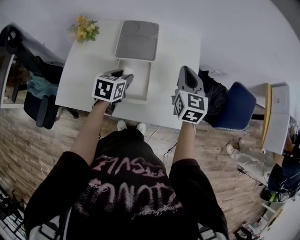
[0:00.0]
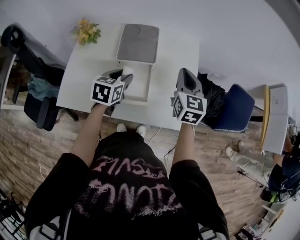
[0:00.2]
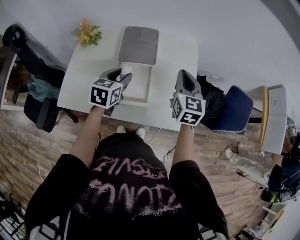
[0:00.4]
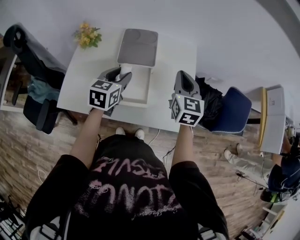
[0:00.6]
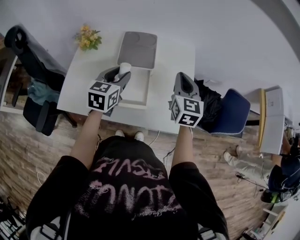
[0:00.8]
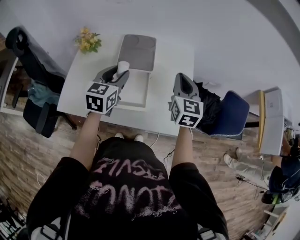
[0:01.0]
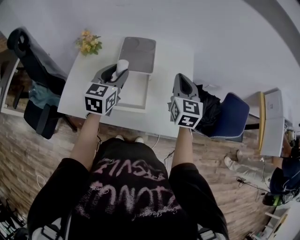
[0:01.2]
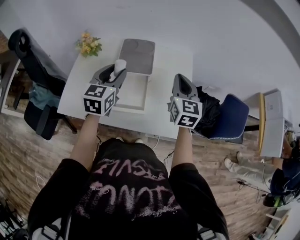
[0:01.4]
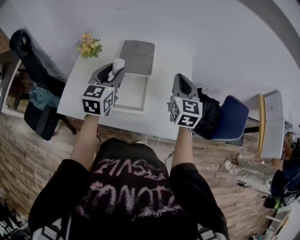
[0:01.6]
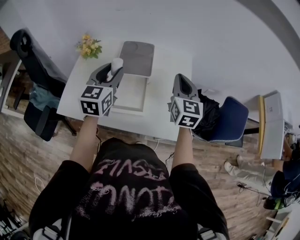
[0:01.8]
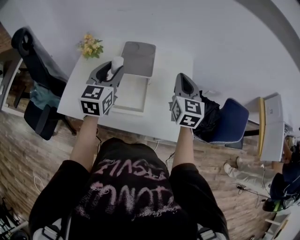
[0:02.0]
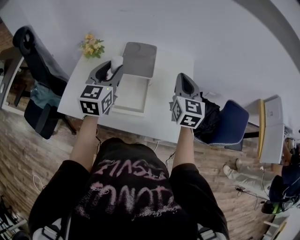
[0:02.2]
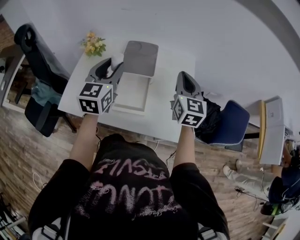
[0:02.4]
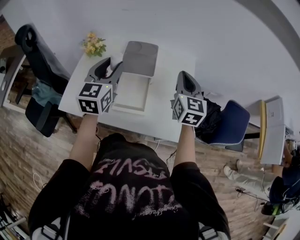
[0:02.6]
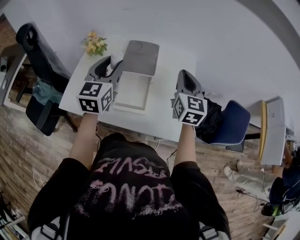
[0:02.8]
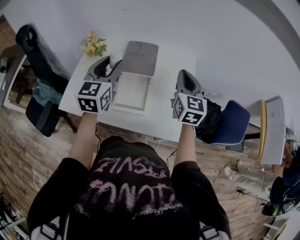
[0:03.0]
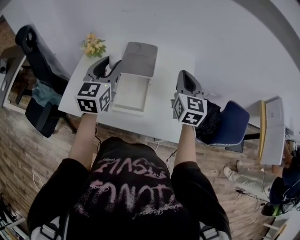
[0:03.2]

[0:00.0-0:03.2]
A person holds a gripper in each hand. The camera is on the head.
0:00.0 to 0:01.6: The left gripper shifts roughly 15 cm upward, and tilts its fingers approximately 30 degrees upward.
0:01.6 to 0:03.2: The left gripper moves about 5 cm.

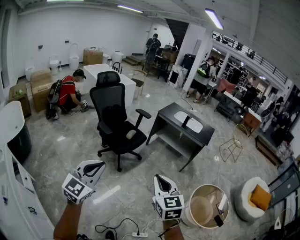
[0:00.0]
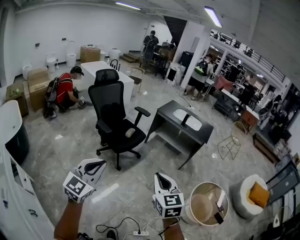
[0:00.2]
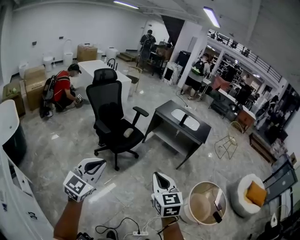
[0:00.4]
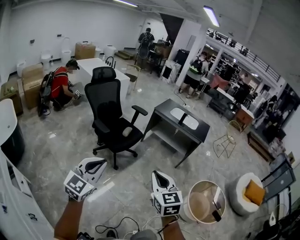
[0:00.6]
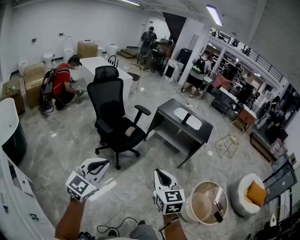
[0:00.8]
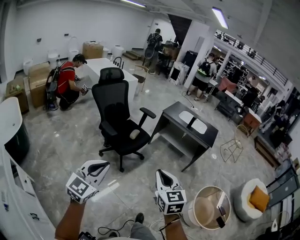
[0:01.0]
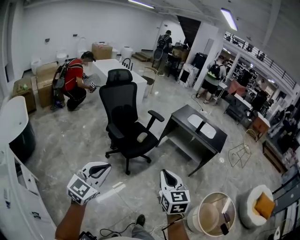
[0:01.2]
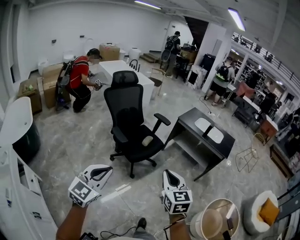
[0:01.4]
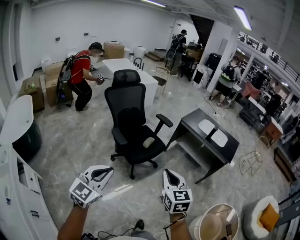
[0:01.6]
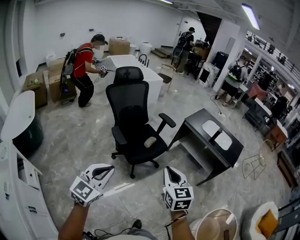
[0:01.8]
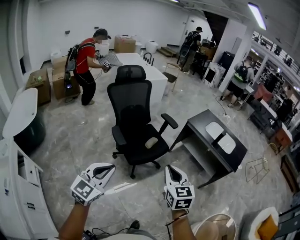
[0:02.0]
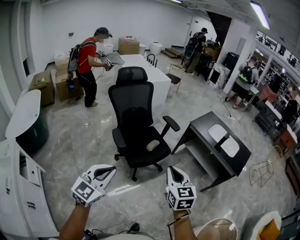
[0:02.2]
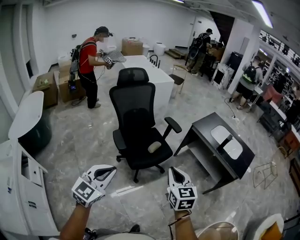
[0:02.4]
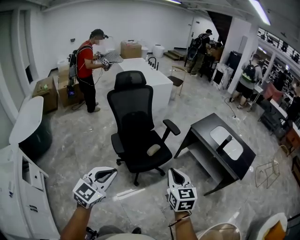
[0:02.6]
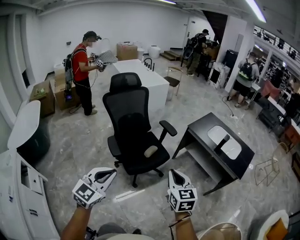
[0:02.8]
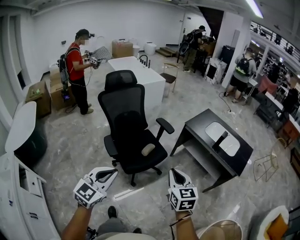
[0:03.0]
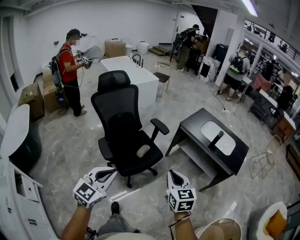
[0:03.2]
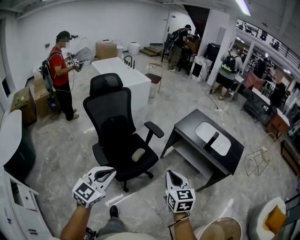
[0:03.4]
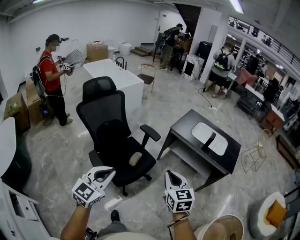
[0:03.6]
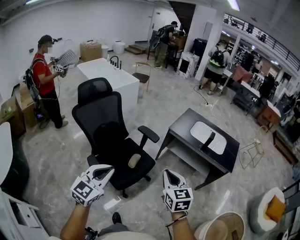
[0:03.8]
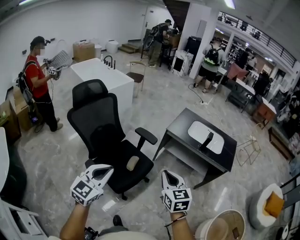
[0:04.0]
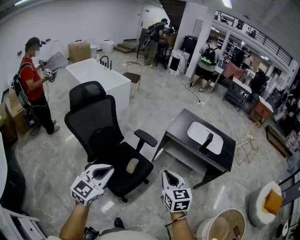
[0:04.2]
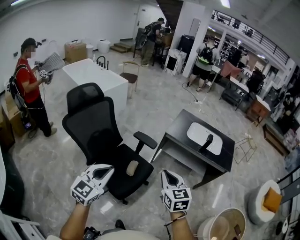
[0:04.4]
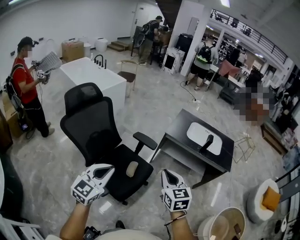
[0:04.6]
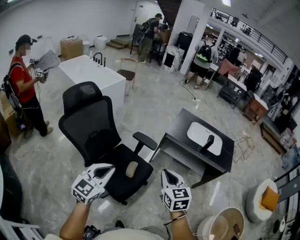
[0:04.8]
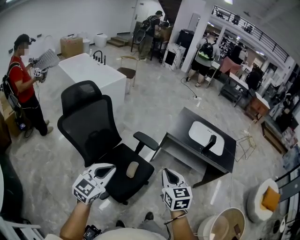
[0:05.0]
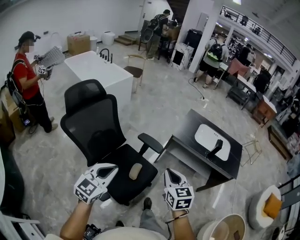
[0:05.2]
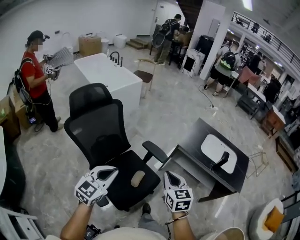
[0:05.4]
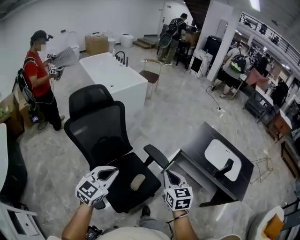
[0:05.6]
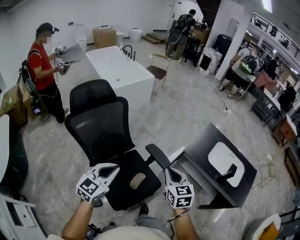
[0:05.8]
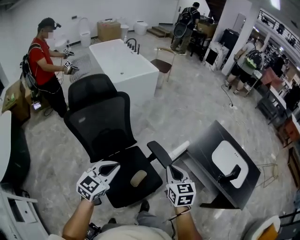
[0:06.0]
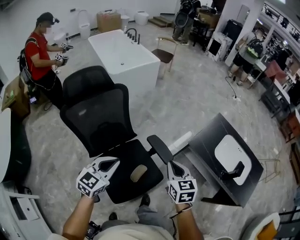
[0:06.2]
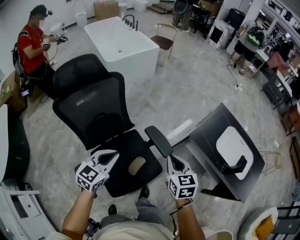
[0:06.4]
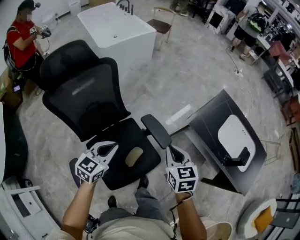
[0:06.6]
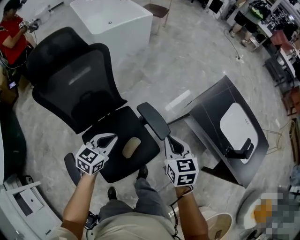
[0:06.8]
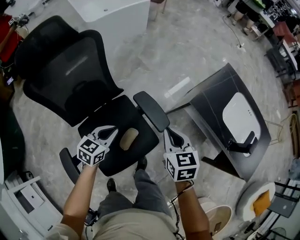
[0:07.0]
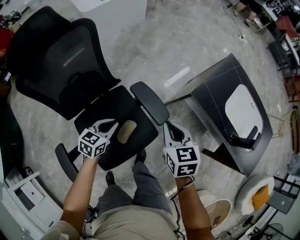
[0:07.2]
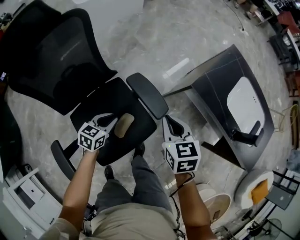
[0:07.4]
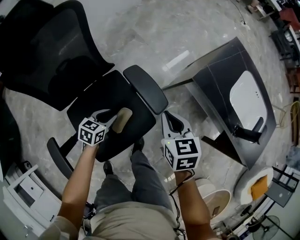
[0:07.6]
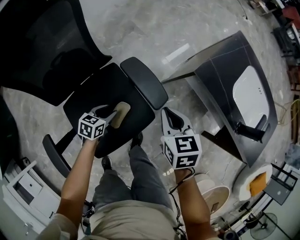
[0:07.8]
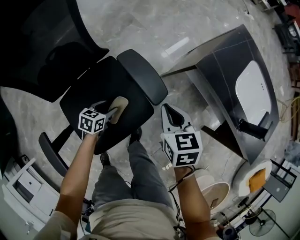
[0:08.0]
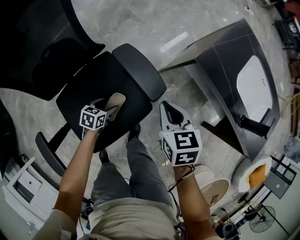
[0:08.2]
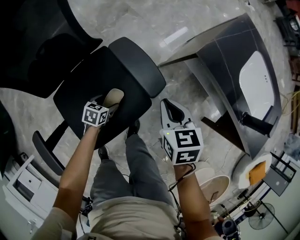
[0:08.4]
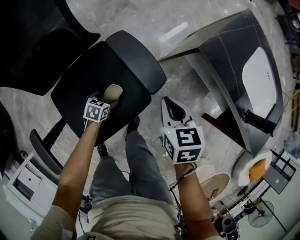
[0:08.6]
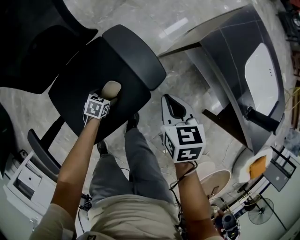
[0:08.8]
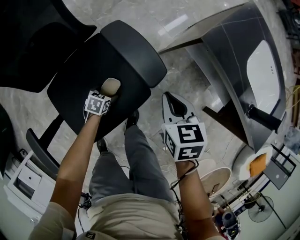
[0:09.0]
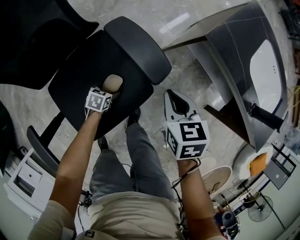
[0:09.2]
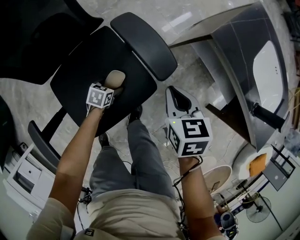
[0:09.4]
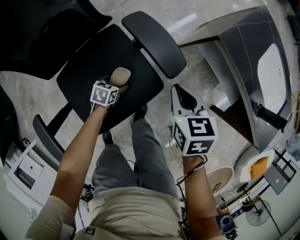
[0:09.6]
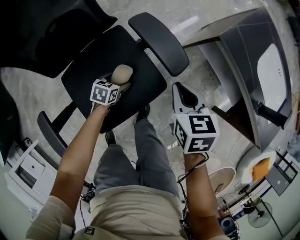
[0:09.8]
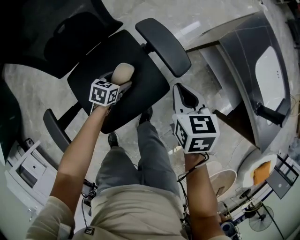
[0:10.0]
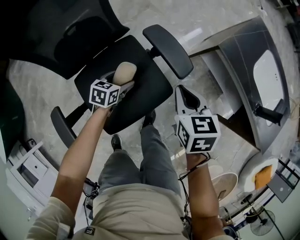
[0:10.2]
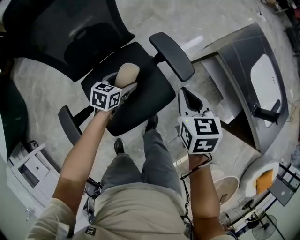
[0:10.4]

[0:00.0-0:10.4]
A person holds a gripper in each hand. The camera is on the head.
0:00.0 to 0:01.4: The two grippers go some 20 cm forward and to the left.
0:01.4 to 0:03.0: The grippers both shift forward and to the right by roughly 35 cm.
0:03.0 to 0:04.4: The grippers both shift forward and to the left by about 30 cm.
0:04.4 to 0:06.0: The left gripper goes some 25 cm forward and downward; the right gripper is displaced forward by about 30 cm.
0:06.0 to 0:07.4: The left gripper moves downward, some 40 cm, and turns by about 30 degrees. Meanwhile the right gripper travels downward and forward by roughly 25 cm.
0:07.4 to 0:09.0: The left gripper is displaced downward by roughly 30 cm, turns by roughly 30 degrees, and opens. The right gripper travels downward and to the right by about 15 cm.
0:09.0 to 0:10.4: The left gripper heads upward, covering roughly 25 cm, and swivels approximately 20 degrees. Meanwhile the right gripper travels upward and to the left by about 15 cm.

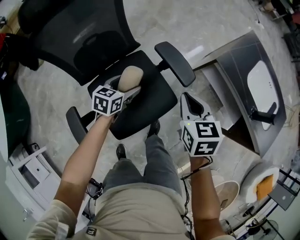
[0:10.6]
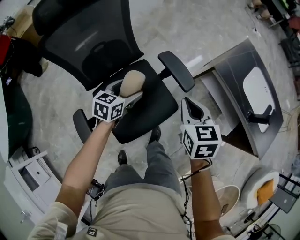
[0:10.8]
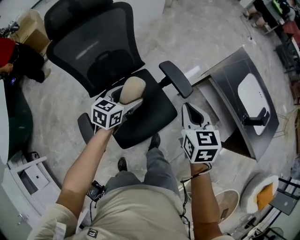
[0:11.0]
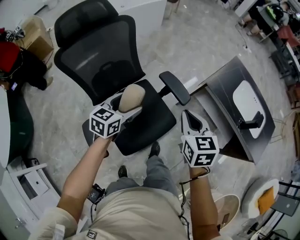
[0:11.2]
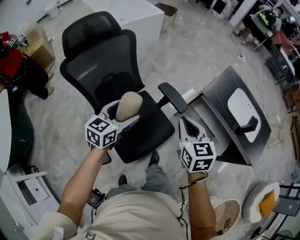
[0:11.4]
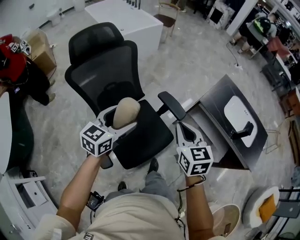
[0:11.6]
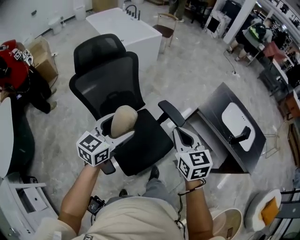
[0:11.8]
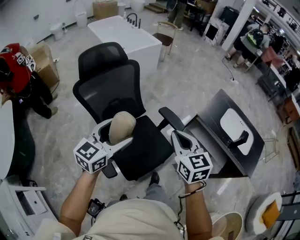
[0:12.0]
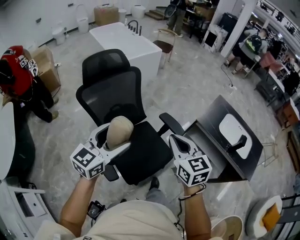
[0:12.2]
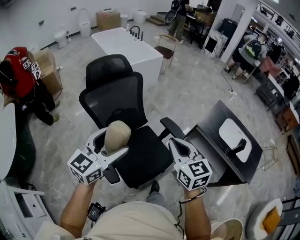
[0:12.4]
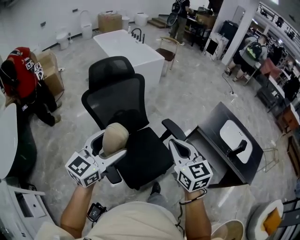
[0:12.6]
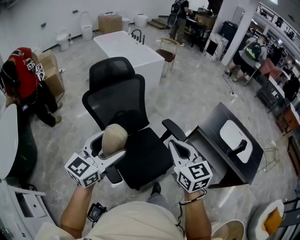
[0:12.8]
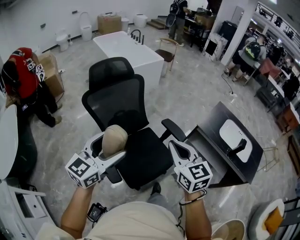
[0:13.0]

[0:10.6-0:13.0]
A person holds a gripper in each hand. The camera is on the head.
0:10.6 to 0:11.8: The left gripper moves upward and backward, approximately 40 cm, and swivels about 30 degrees; the right gripper goes approximately 25 cm upward and backward.
0:11.8 to 0:13.0: The right gripper goes about 10 cm upward, backward and to the left. Meanwhile the left gripper shifts roughly 15 cm backward, upward and to the left.

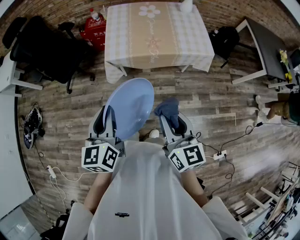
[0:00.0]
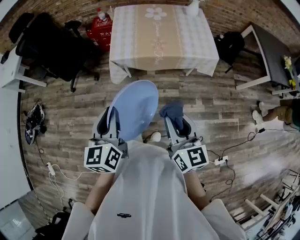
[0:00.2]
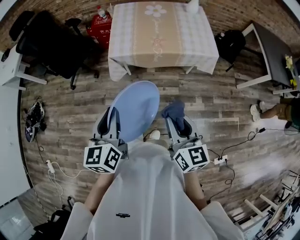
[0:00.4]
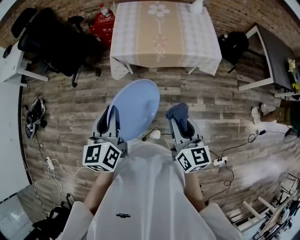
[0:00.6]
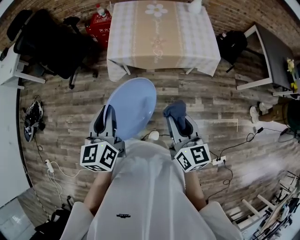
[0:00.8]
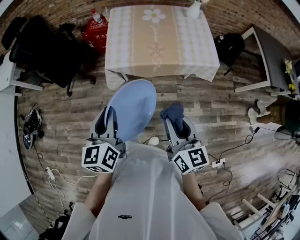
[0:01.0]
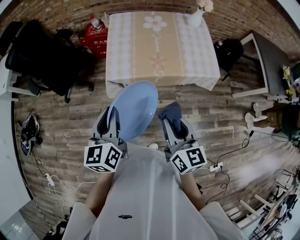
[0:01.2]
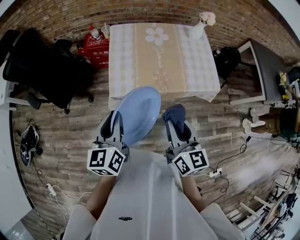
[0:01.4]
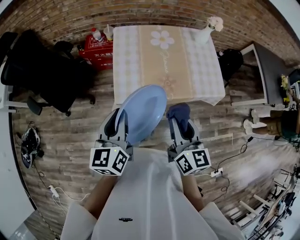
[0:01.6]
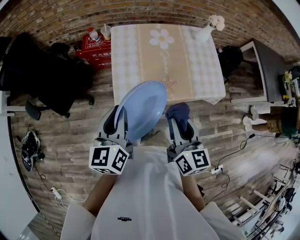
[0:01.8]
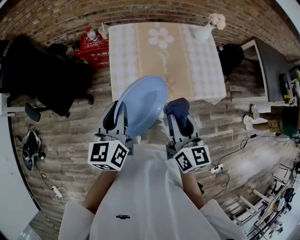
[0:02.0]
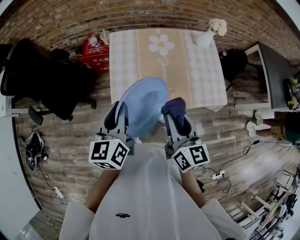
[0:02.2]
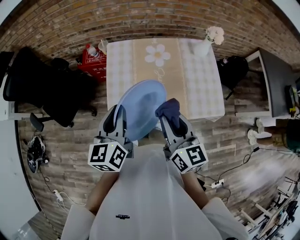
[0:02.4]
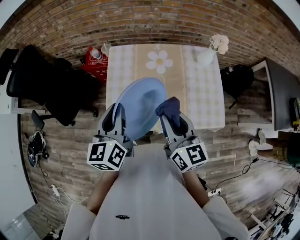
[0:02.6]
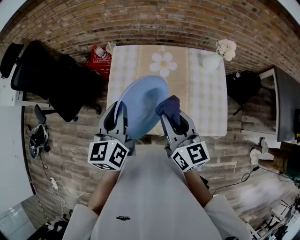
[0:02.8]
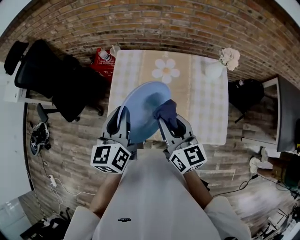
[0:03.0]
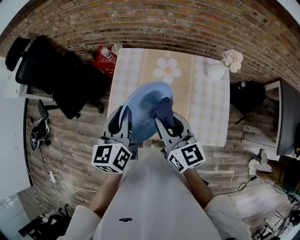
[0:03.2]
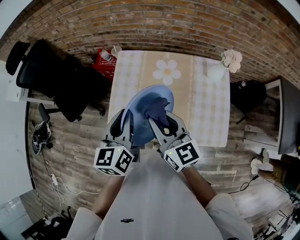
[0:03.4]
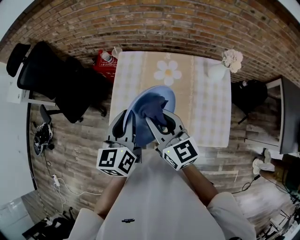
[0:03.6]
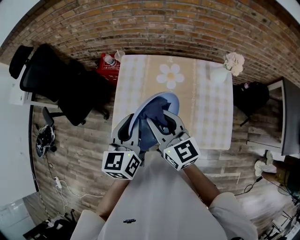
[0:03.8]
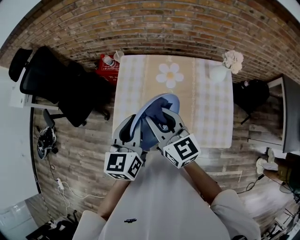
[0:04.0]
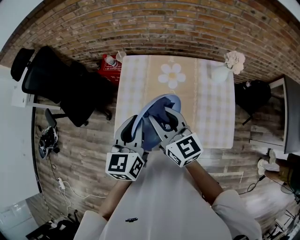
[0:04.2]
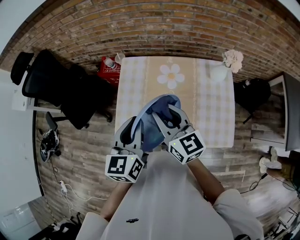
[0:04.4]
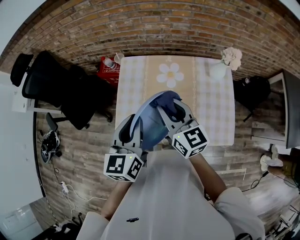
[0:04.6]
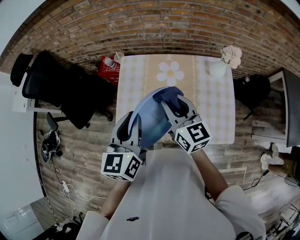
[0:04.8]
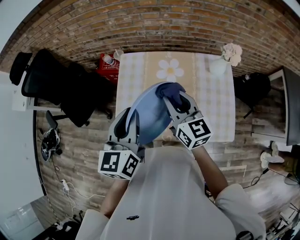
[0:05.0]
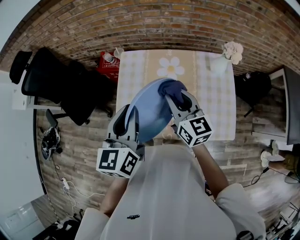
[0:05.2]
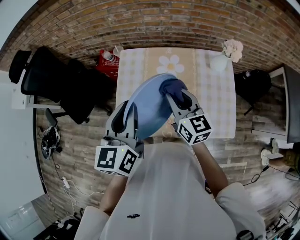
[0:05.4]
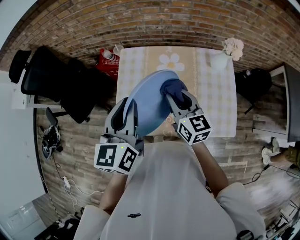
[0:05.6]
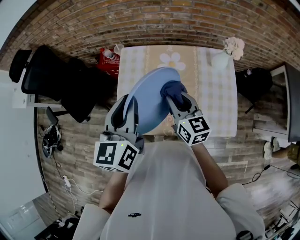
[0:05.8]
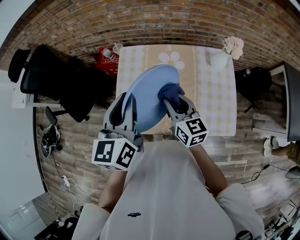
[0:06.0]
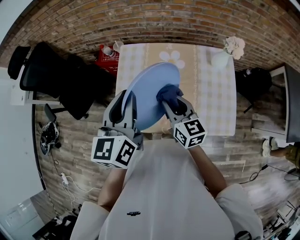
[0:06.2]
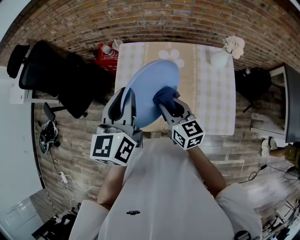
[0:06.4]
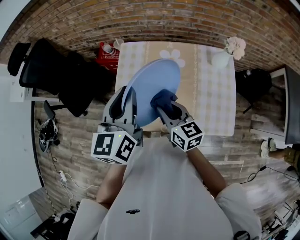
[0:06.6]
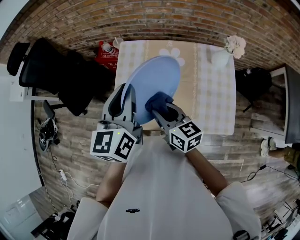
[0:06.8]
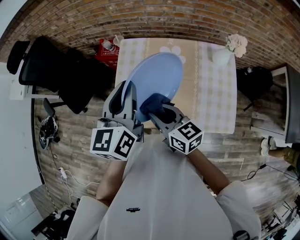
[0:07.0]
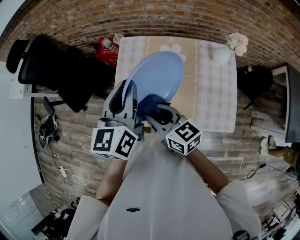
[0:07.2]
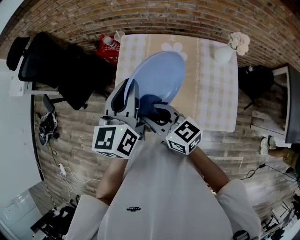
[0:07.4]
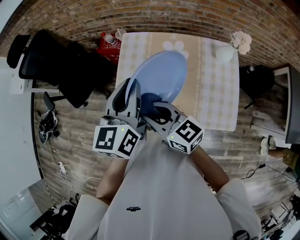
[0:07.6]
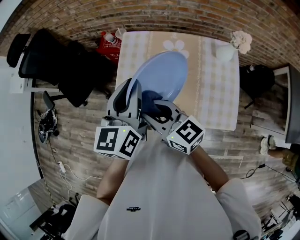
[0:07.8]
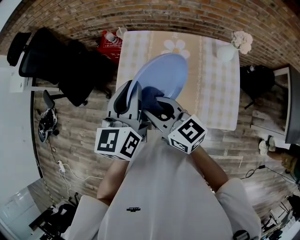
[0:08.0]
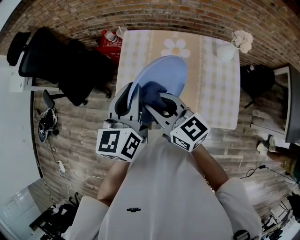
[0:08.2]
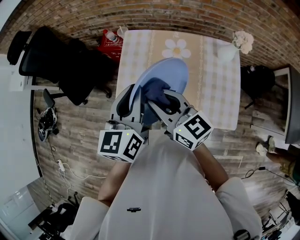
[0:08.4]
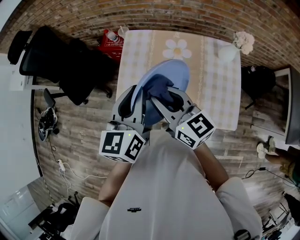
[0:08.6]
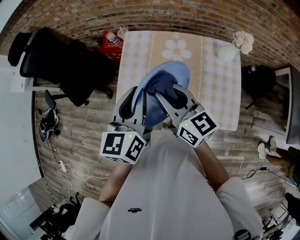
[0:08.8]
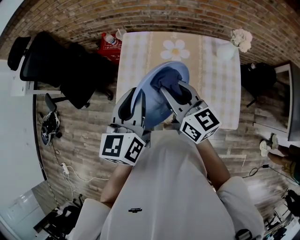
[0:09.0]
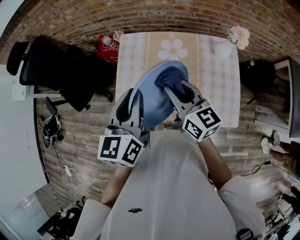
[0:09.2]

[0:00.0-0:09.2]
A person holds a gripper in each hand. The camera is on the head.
0:00.0 to 0:01.6: Both grippers travel together forward, approximately 35 cm.
0:01.6 to 0:03.0: Both grippers travel together forward and to the right, approximately 30 cm. The right gripper rotates approximately 20 degrees.
0:03.0 to 0:04.6: The right gripper goes approximately 5 cm forward.
0:04.6 to 0:06.2: The right gripper is displaced downward by approximately 10 cm.
0:06.2 to 0:07.6: The right gripper moves to the left and backward, about 10 cm, and rotates some 30 degrees.
0:07.6 to 0:09.2: The right gripper goes approximately 10 cm to the right and forward, and rotates approximately 20 degrees.
